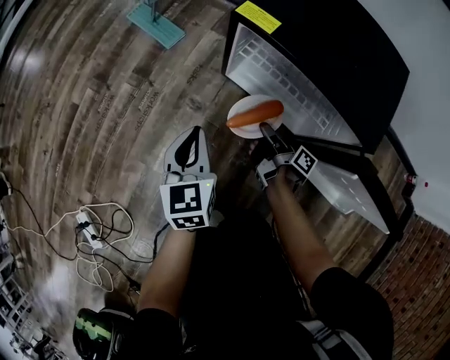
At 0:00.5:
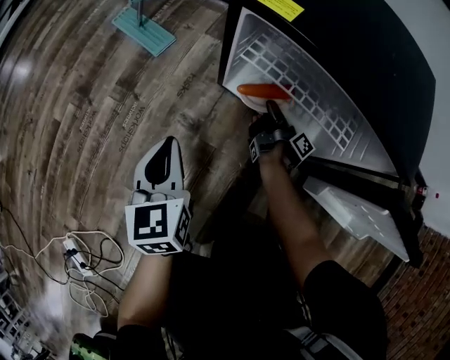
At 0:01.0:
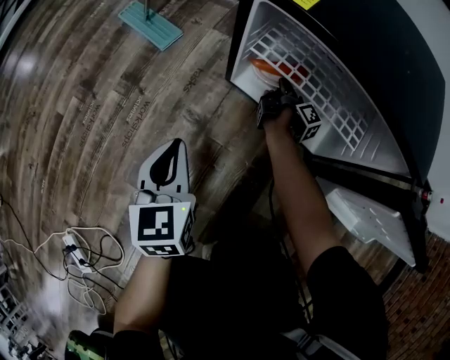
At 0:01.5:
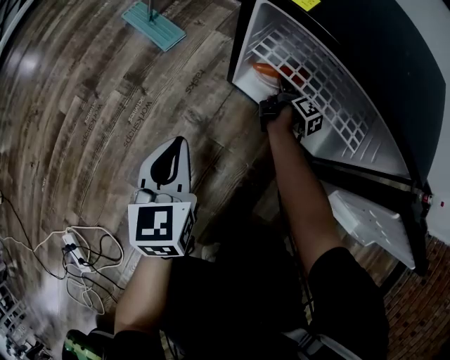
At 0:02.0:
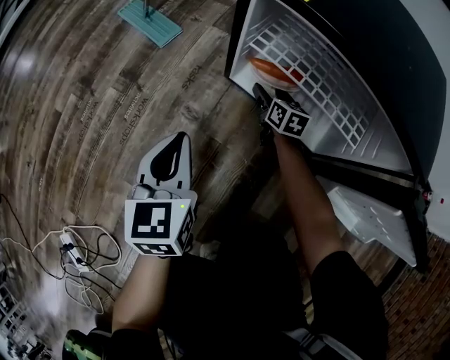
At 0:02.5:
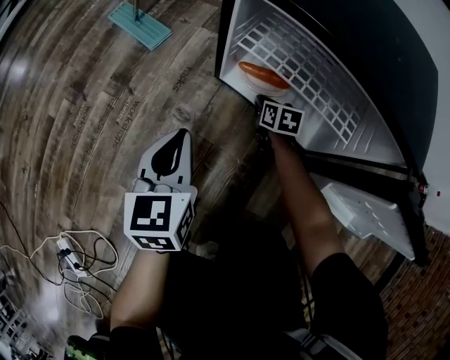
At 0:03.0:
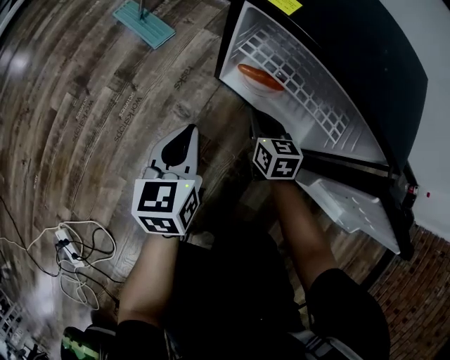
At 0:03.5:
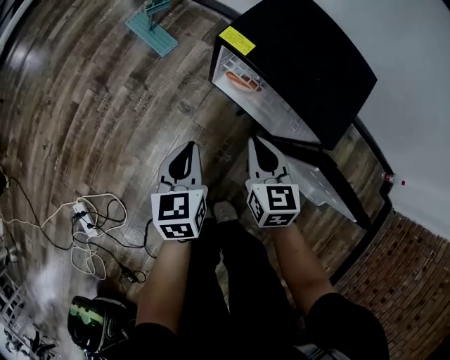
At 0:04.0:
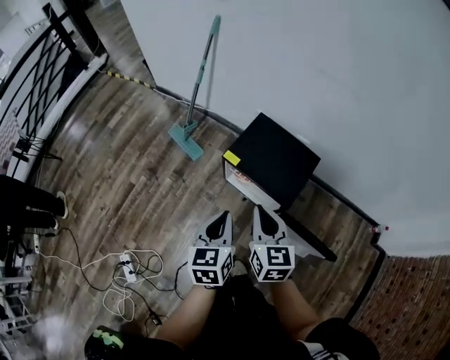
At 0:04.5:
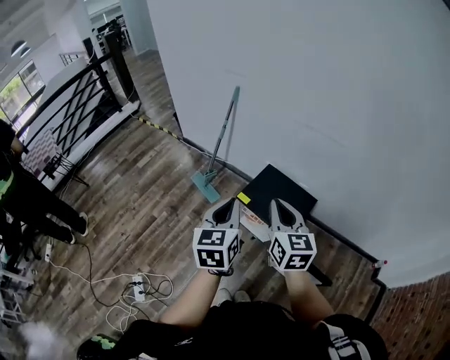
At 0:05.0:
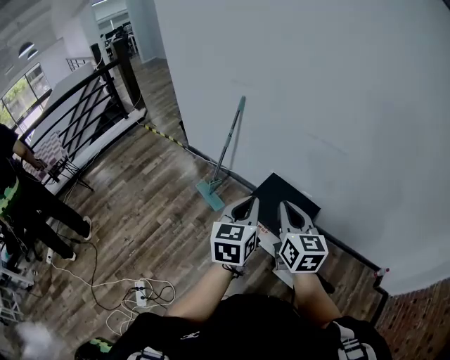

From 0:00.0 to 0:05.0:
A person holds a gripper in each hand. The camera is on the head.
From 0:00.0 to 0:02.5: The left gripper travels downward by some 10 cm.
From 0:02.5 to 0:05.0: The left gripper moves upward, about 80 cm.

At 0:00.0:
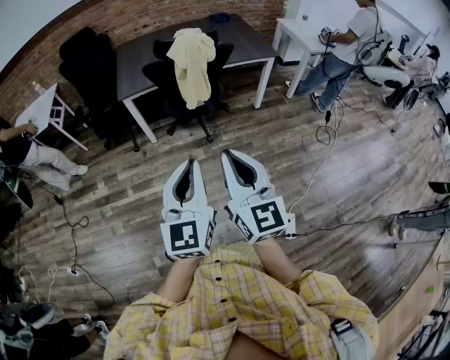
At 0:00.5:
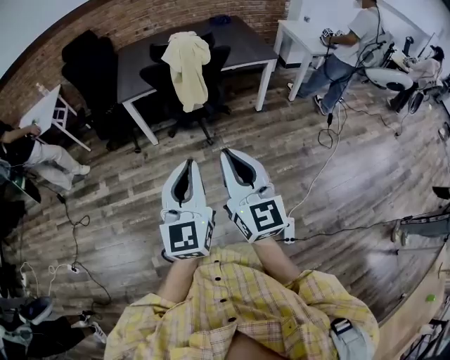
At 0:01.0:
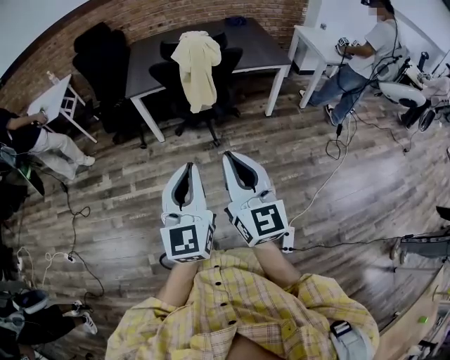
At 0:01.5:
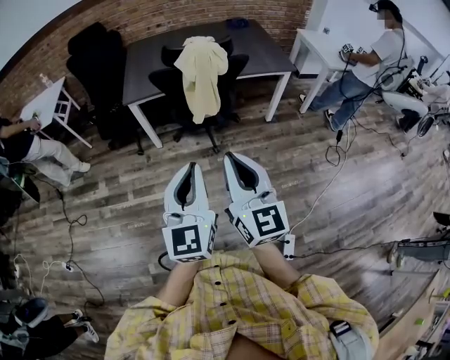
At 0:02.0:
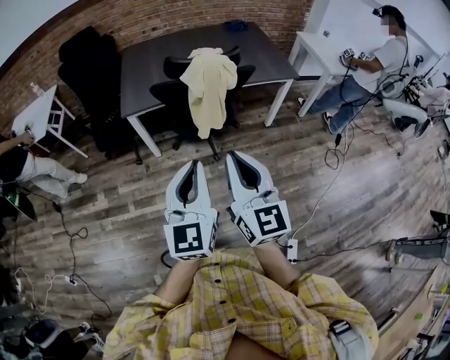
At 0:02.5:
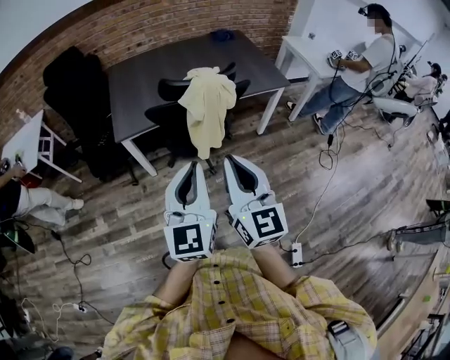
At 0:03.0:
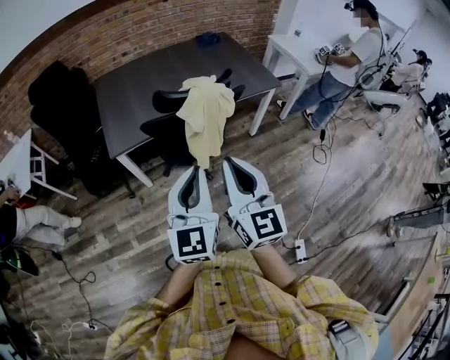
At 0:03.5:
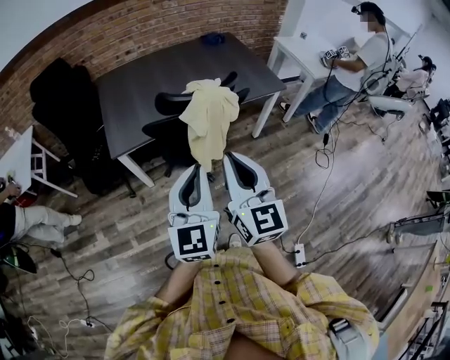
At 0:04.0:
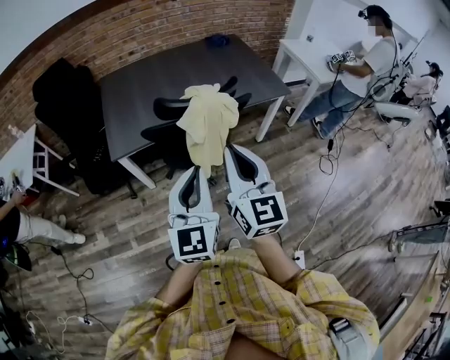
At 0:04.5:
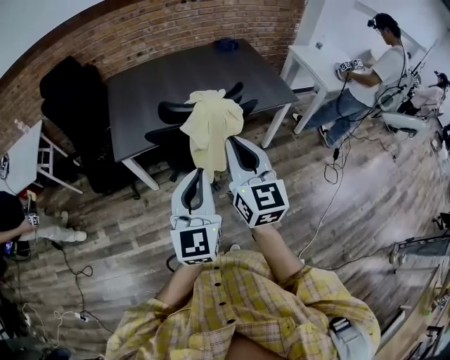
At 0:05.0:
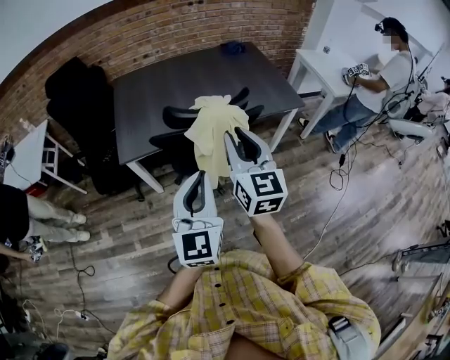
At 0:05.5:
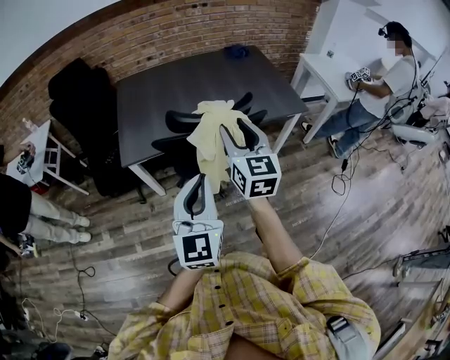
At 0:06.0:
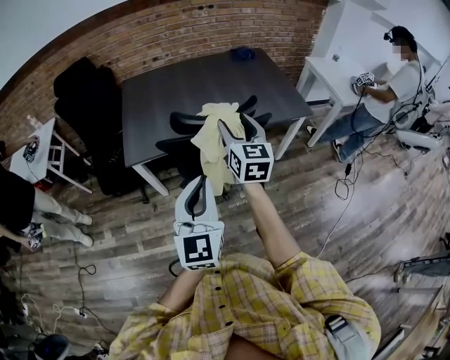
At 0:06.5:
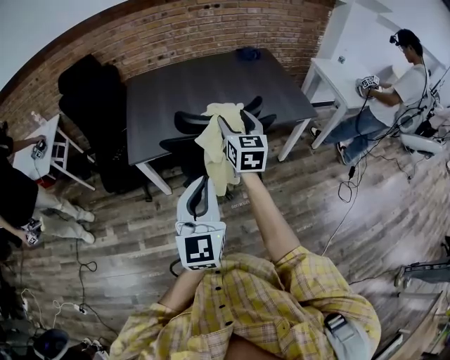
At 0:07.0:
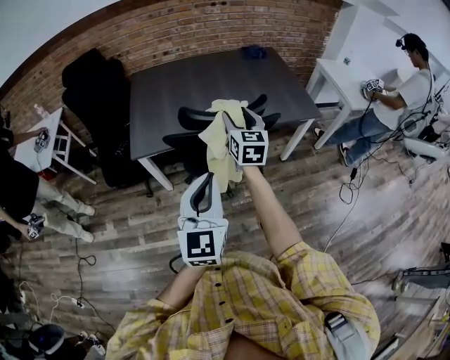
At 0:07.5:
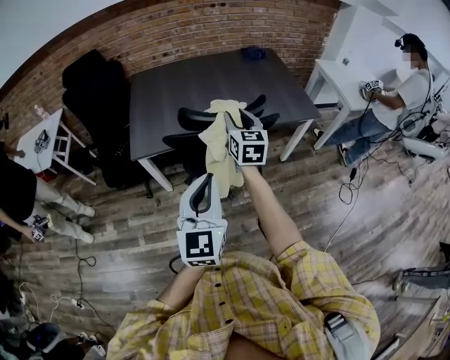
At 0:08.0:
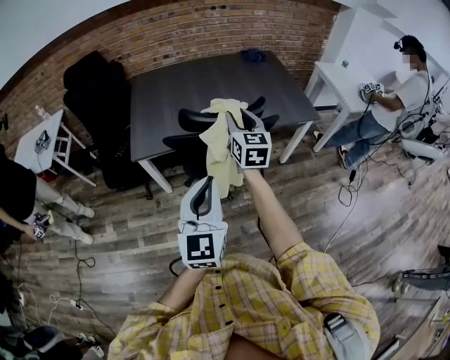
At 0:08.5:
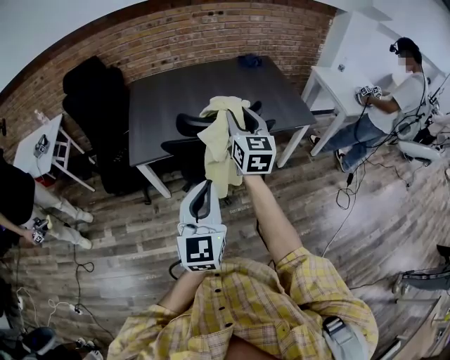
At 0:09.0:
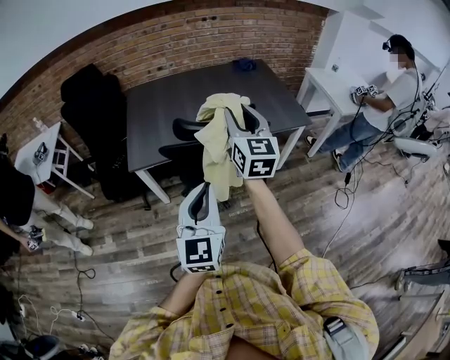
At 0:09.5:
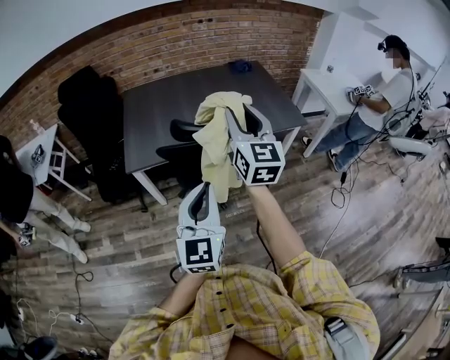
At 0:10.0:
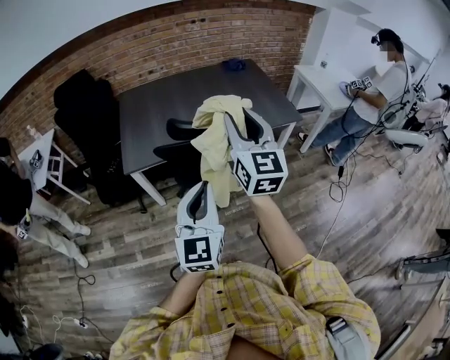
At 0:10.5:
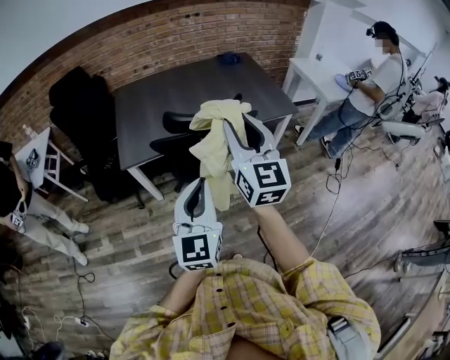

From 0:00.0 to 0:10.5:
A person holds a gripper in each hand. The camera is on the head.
From 0:00.0 to 0:02.0: Both grippers travel together forward, some 20 cm.
From 0:02.0 to 0:04.0: Both grippers travel together forward, roughly 20 cm.
From 0:04.0 to 0:06.5: The right gripper heads forward, covering approximately 20 cm, and opens up.
From 0:06.5 to 0:08.5: The right gripper moves upward, some 5 cm, and closes.
From 0:08.5 to 0:10.5: The right gripper travels backward and upward by approximately 15 cm.

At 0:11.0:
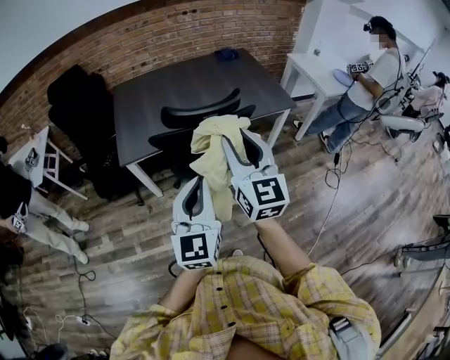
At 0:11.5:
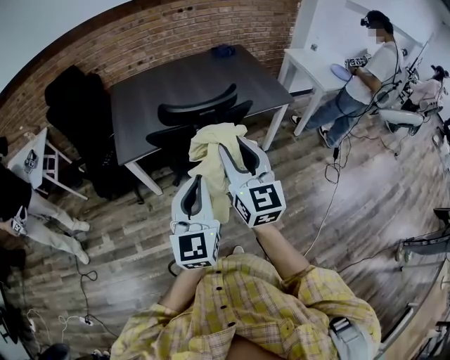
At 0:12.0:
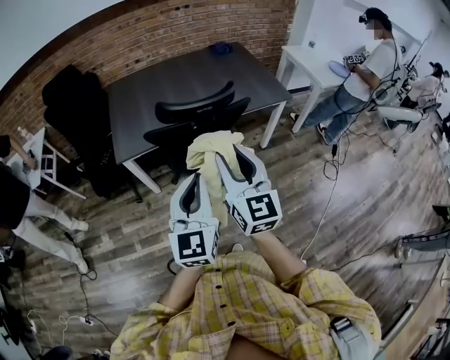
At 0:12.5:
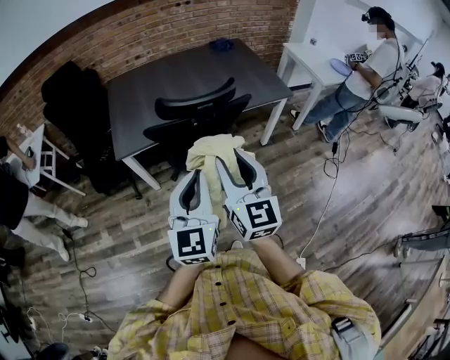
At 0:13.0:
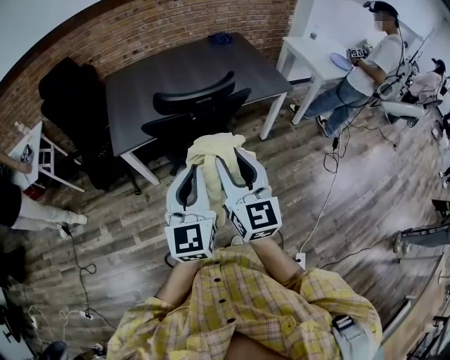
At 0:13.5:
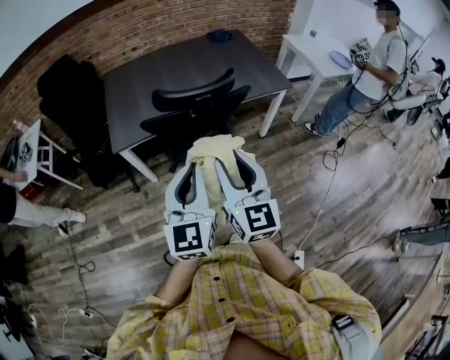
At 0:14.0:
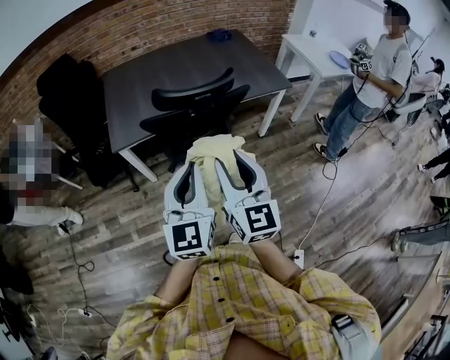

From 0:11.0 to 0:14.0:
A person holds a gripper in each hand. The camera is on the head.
From 0:11.0 to 0:12.5: The right gripper moves about 5 cm.
From 0:12.5 to 0:14.0: The grippers make only small movements.

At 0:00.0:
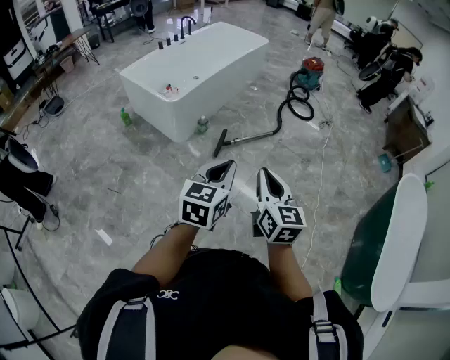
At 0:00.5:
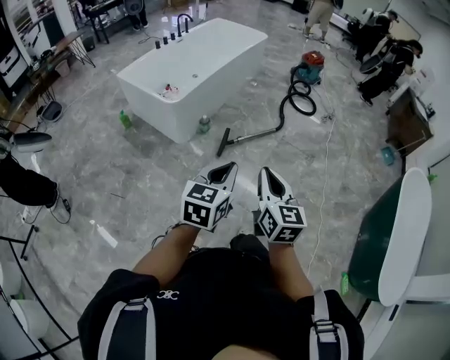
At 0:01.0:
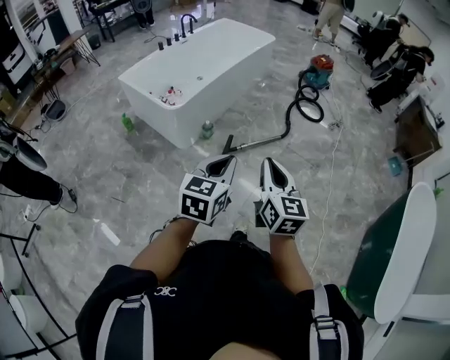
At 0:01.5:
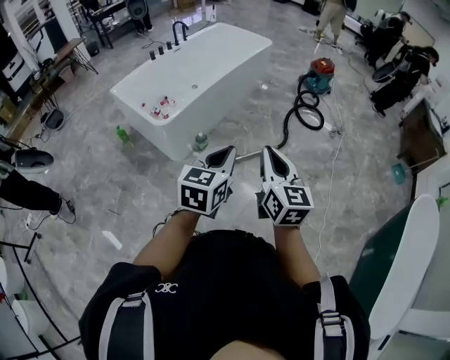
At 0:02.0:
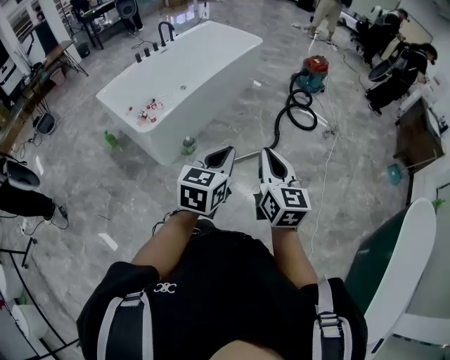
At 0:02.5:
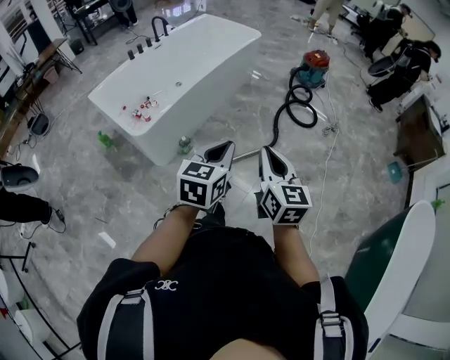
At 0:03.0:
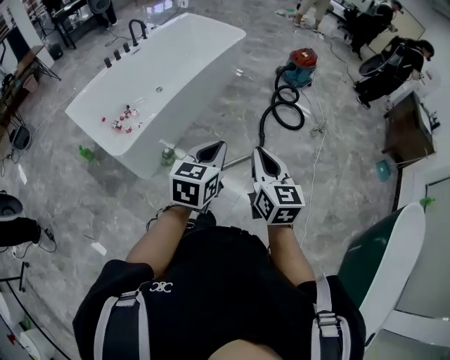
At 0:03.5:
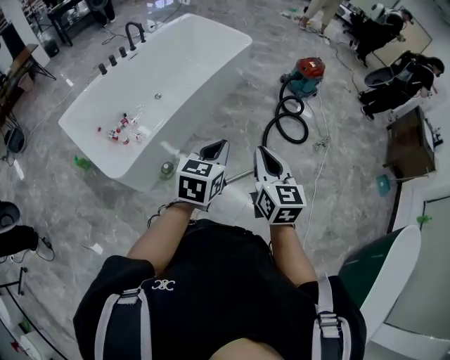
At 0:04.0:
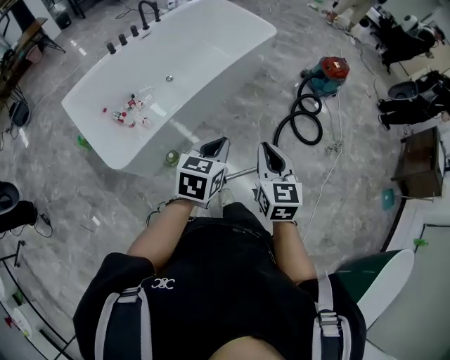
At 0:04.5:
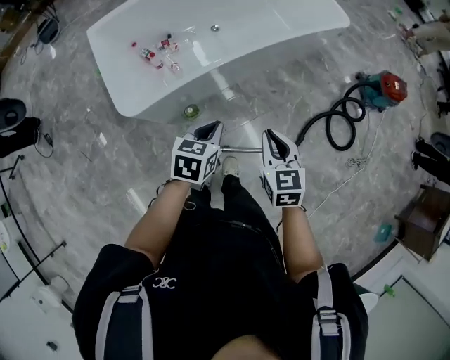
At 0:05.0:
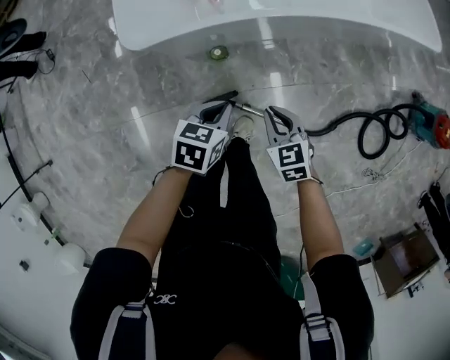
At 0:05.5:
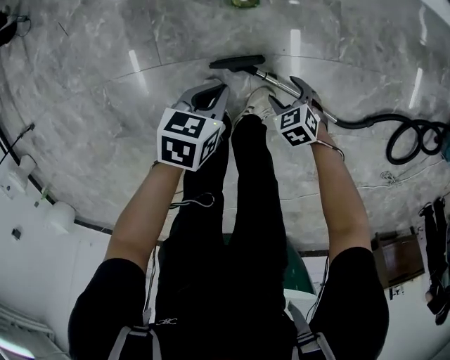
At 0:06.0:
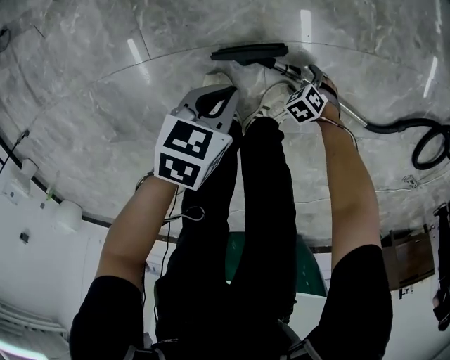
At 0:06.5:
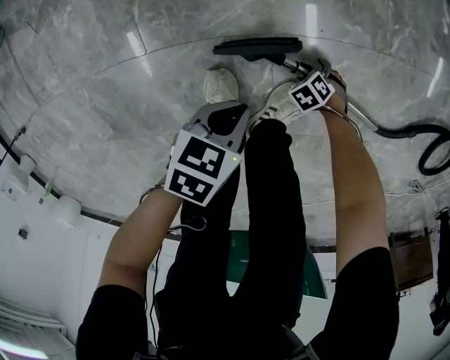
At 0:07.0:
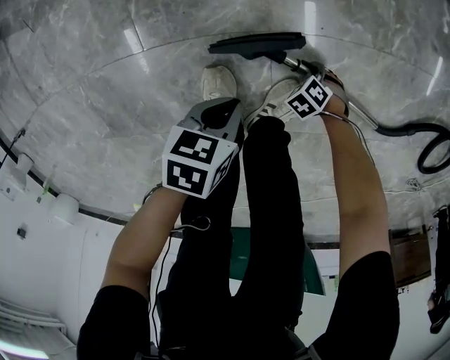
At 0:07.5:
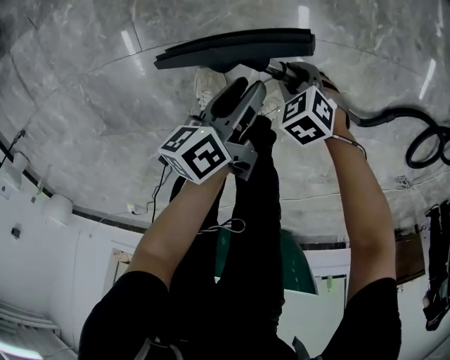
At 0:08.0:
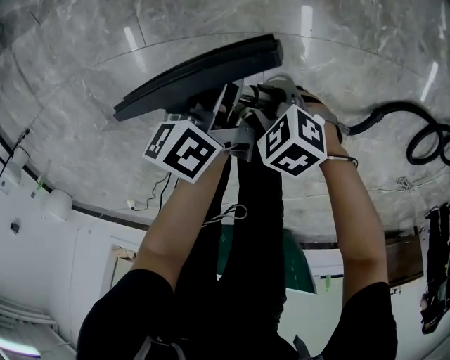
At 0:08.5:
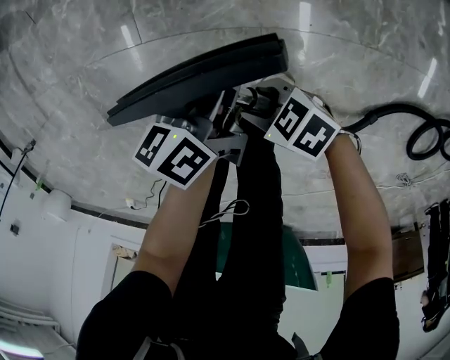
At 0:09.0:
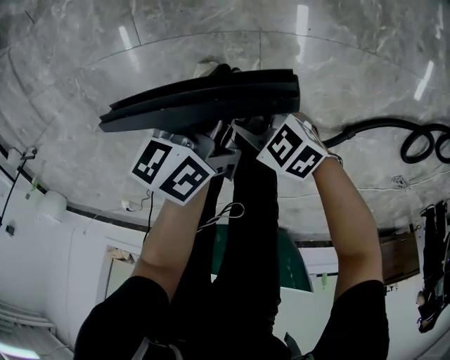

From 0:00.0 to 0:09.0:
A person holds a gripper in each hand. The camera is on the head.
From 0:00.0 to 0:02.0: Both grippers move forward, roughly 35 cm.
From 0:02.0 to 0:04.5: The two grippers travel together, some 50 cm. The left gripper turns by roughly 30 degrees, while the right gripper turns by roughly 40 degrees.
From 0:04.5 to 0:07.0: Both grippers travel together downward, approximately 80 cm. The left gripper changes its angle by approximately 40 degrees. The right gripper angles its fingers downward, by roughly 60 degrees, and opens its fingers.
From 0:07.0 to 0:09.0: The right gripper moves upward, about 25 cm, and tips its fingers upward by some 50 degrees. The left gripper goes about 10 cm upward, turns by roughly 50 degrees, and opens up.
